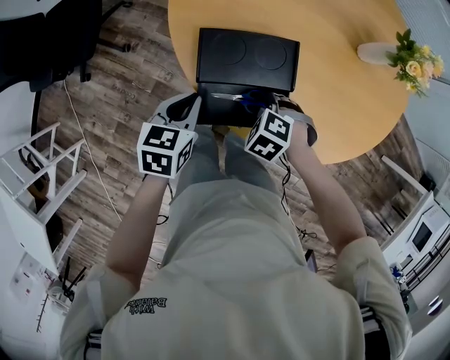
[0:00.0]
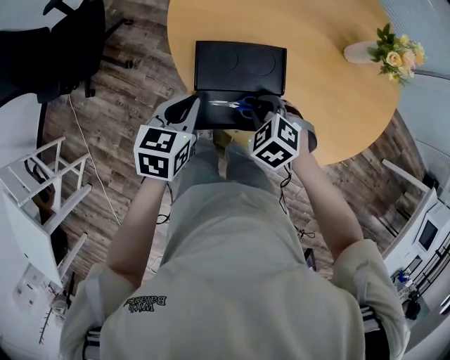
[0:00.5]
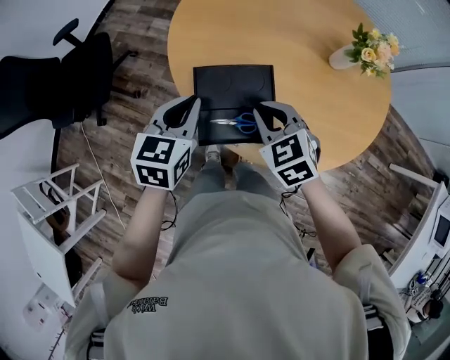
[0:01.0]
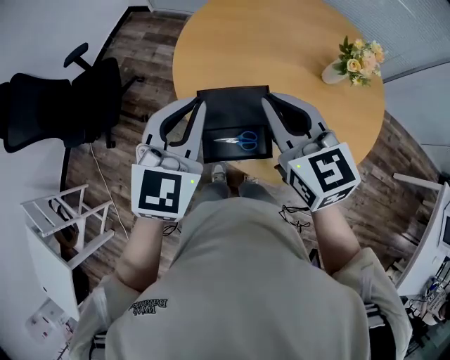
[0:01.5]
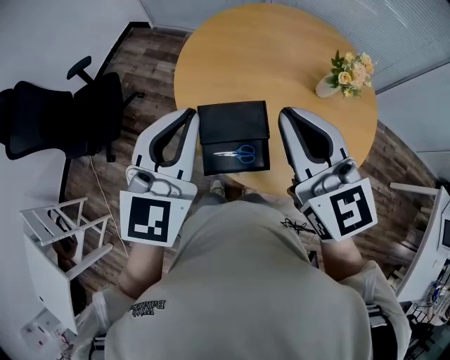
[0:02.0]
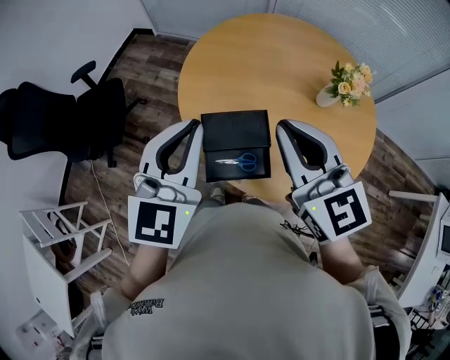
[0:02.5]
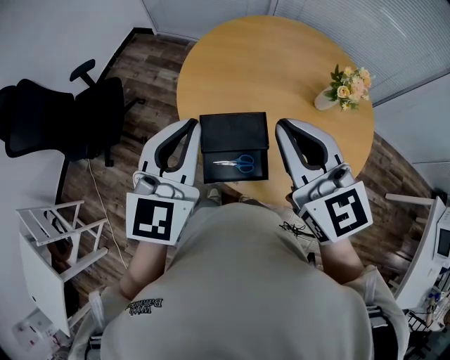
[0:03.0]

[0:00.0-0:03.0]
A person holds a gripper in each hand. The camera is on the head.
0:00.0 to 0:01.5: Both grippers travel together upward, some 30 cm. The right gripper tips its fingers upward by roughly 60 degrees, while the left gripper changes its angle by roughly 40 degrees.
0:01.5 to 0:03.0: The right gripper shifts about 10 cm upward. Meanwhile the left gripper travels upward by some 5 cm.

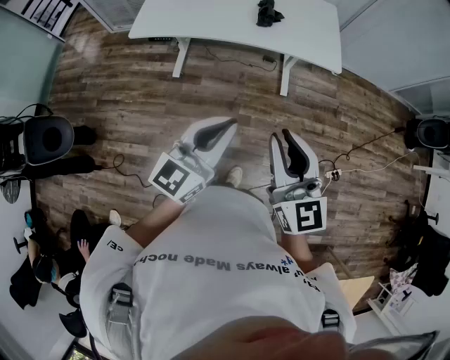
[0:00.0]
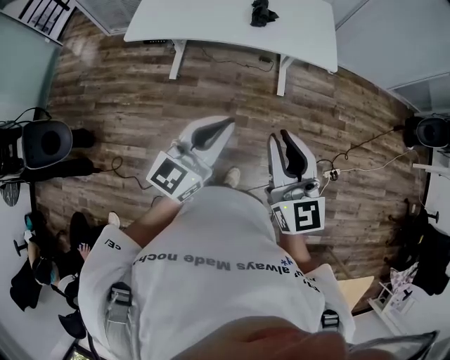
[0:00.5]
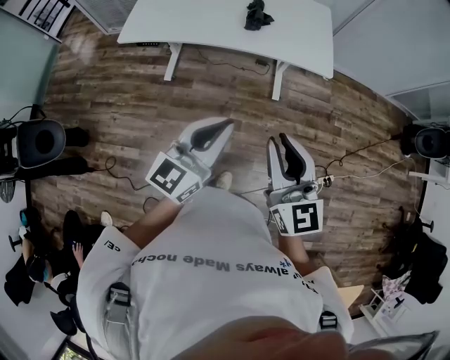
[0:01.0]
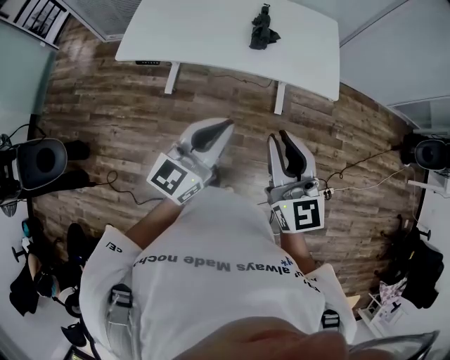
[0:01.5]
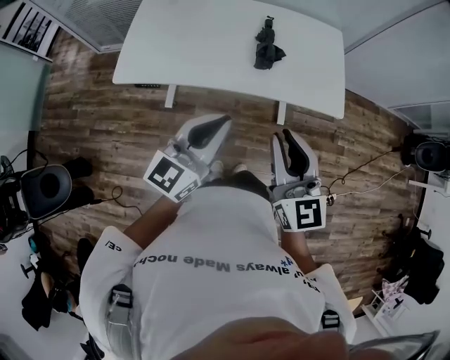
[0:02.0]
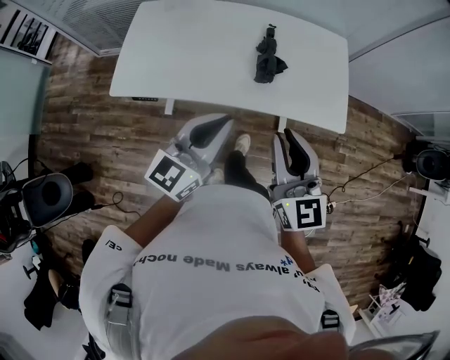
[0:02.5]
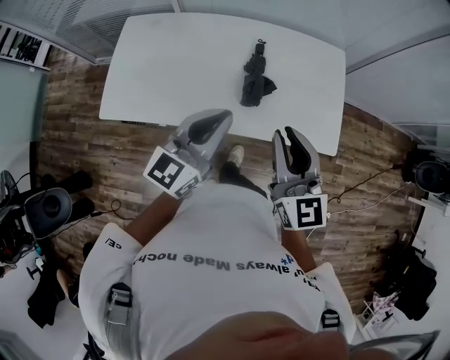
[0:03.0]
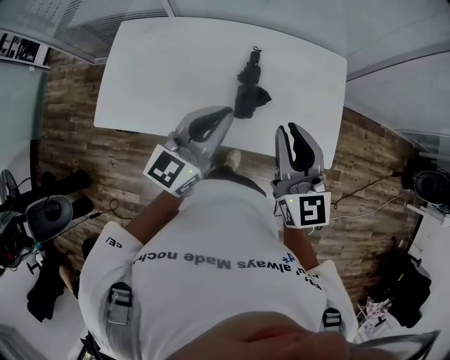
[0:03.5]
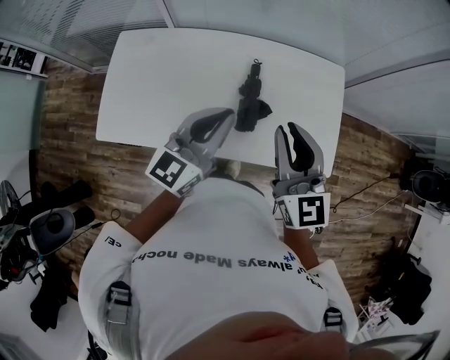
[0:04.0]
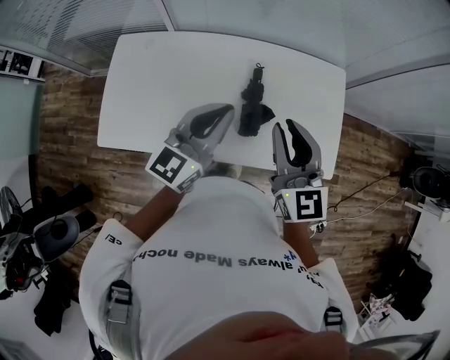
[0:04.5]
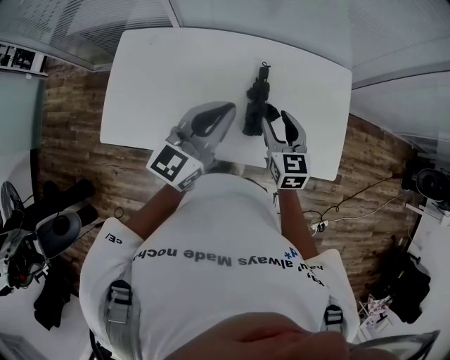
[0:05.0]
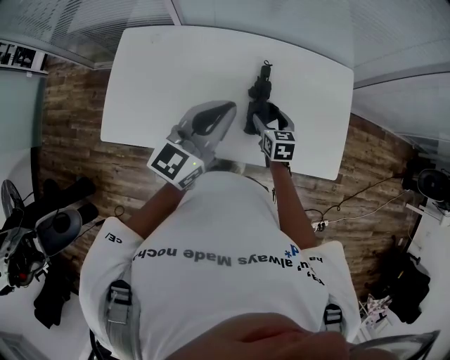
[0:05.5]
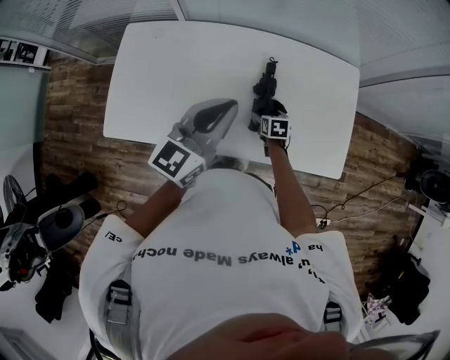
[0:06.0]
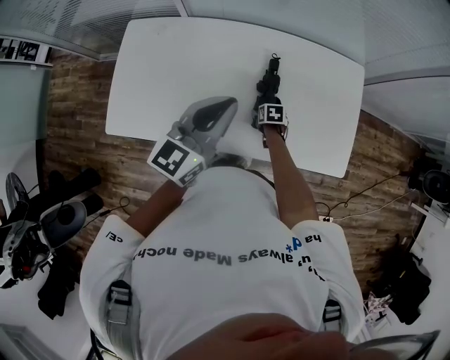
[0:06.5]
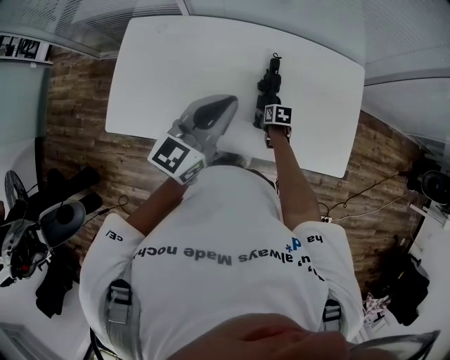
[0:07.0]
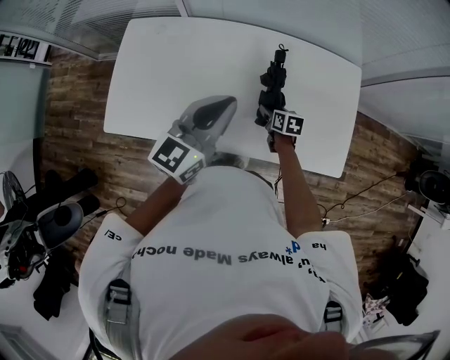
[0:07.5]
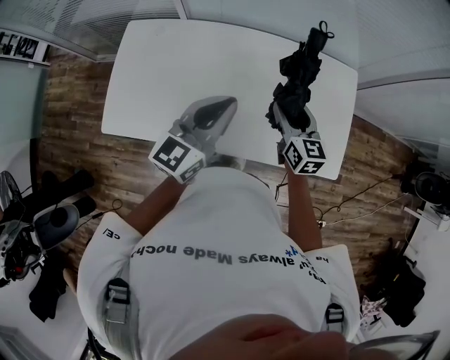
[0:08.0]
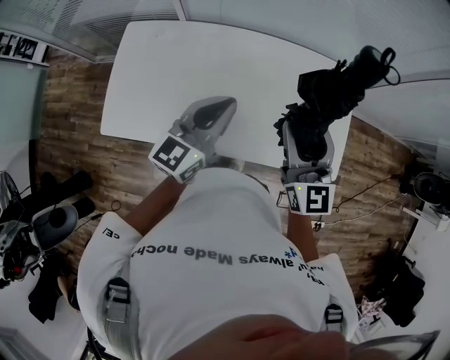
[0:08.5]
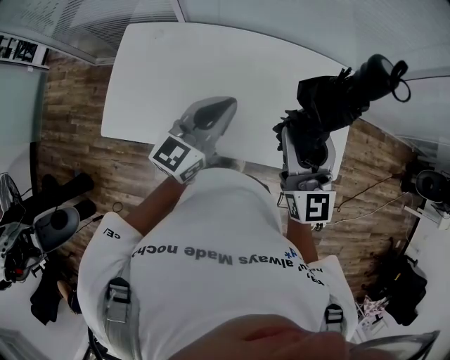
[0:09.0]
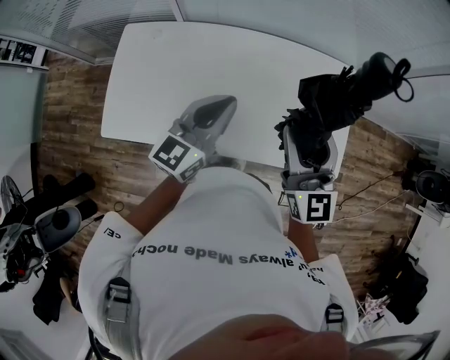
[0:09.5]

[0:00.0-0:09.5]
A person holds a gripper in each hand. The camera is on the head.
0:00.0 to 0:02.0: Both grippers travel together forward, some 35 cm.
0:02.0 to 0:04.0: The two grippers travel together, forward, some 40 cm.
0:04.0 to 0:05.5: The right gripper shifts approximately 30 cm downward, tilts its fingers approximately 40 degrees downward, and opens its fingers. Meanwhile the left gripper shifts about 5 cm to the left.
0:05.5 to 0:07.5: The right gripper is displaced downward by about 10 cm, and turns by about 20 degrees.
0:07.5 to 0:09.5: The right gripper goes roughly 40 cm upward, and tilts its fingers roughly 50 degrees upward.

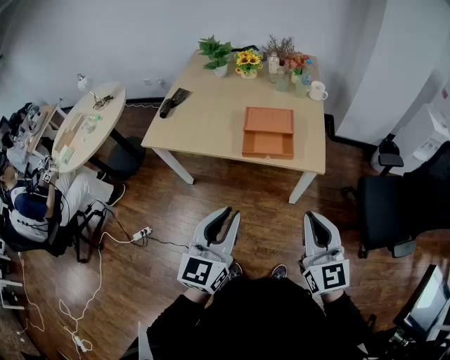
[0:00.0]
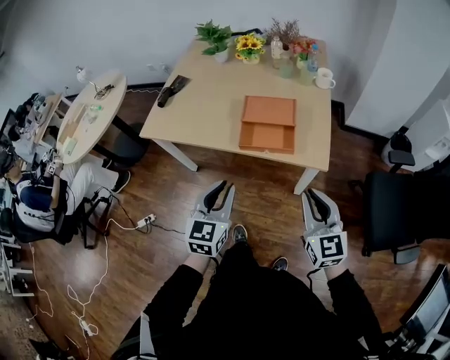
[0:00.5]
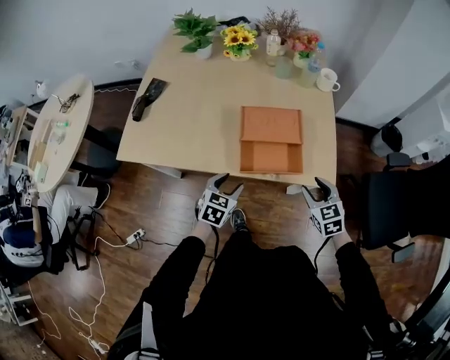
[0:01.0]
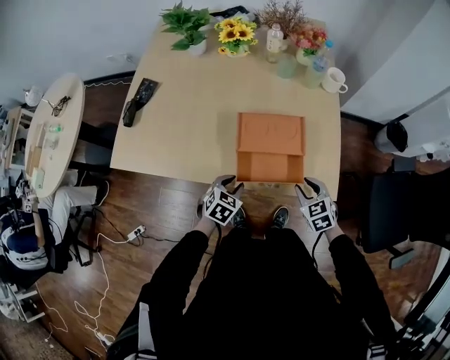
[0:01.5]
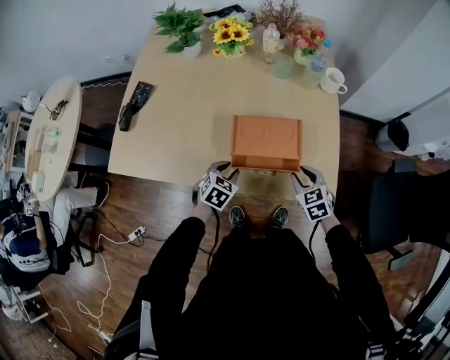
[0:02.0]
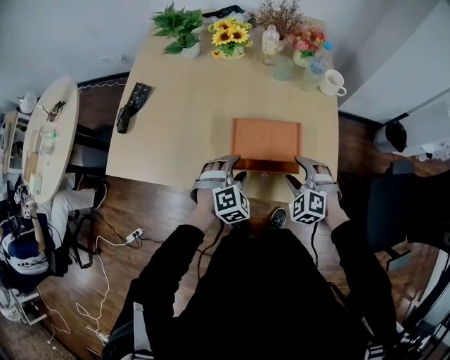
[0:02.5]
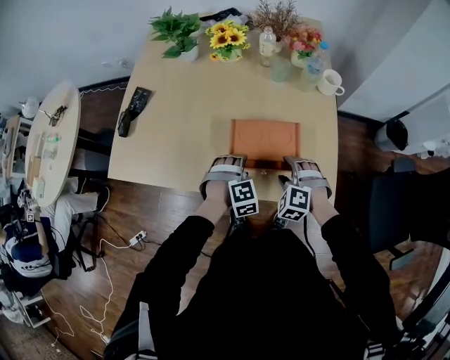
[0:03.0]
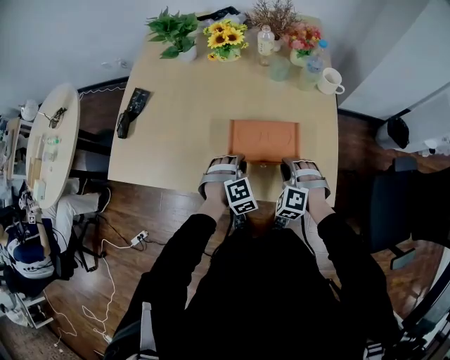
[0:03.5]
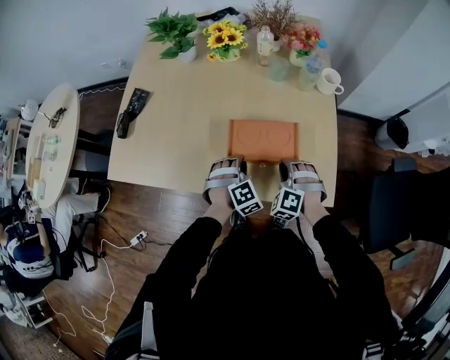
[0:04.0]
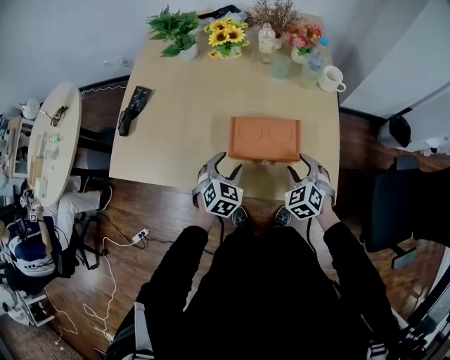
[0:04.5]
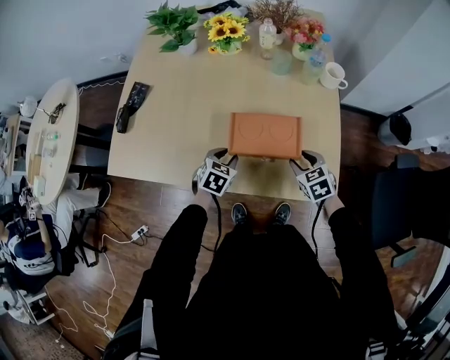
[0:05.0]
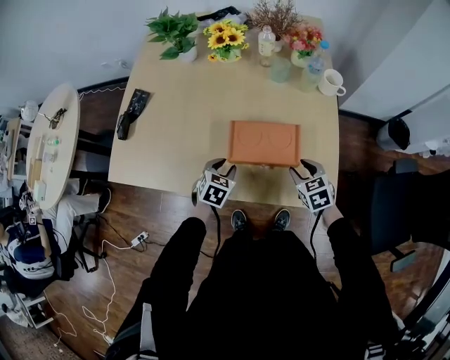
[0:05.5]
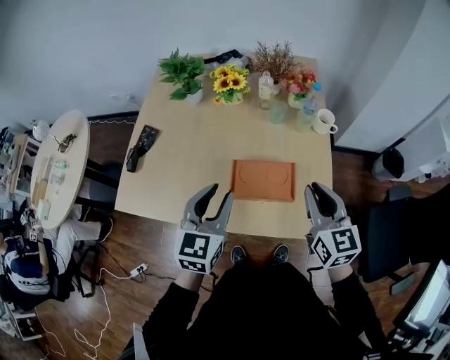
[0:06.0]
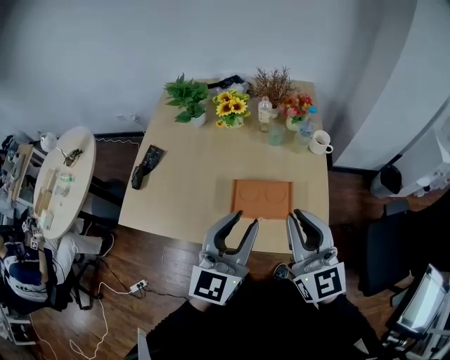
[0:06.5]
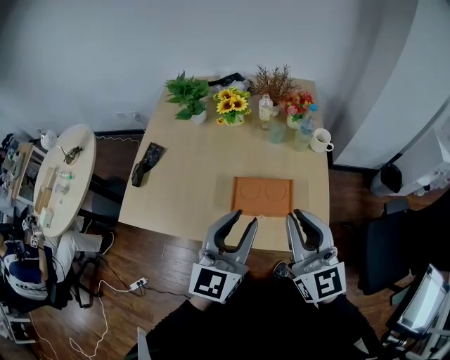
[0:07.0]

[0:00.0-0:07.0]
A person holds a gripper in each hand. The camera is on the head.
0:00.0 to 0:02.0: The two grippers go approximately 50 cm forward and downward. The right gripper tilts its fingers roughly 40 degrees downward, and opens its fingers; the left gripper tilts its fingers approximately 50 degrees downward, and opens, then closes once more.
0:02.0 to 0:03.5: The right gripper ends up about 5 cm from where it was, rolls counterclockwise, seen from behind, by roughly 50 degrees, and opens, then closes once more. Meanwhile the left gripper changes place by approximately 5 cm, rolls clockwise, seen from behind, by approximately 50 degrees, and opens, then closes again.
0:03.5 to 0:05.0: The left gripper shifts by about 5 cm, rolls counterclockwise, seen from behind, by roughly 50 degrees, and opens, then closes again. The right gripper changes place by roughly 5 cm, and rolls clockwise, seen from behind, by approximately 50 degrees.
0:05.0 to 0:07.0: The grippers both shift upward by approximately 35 cm. The right gripper angles its fingers upward, by some 50 degrees, and closes up. Meanwhile the left gripper points its fingers about 50 degrees further upward.

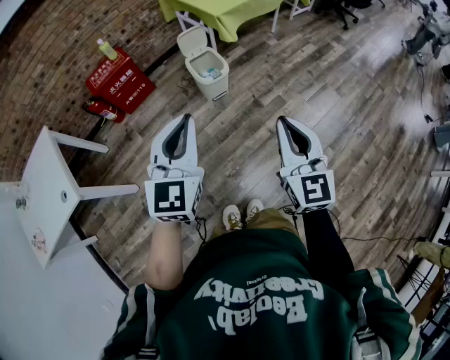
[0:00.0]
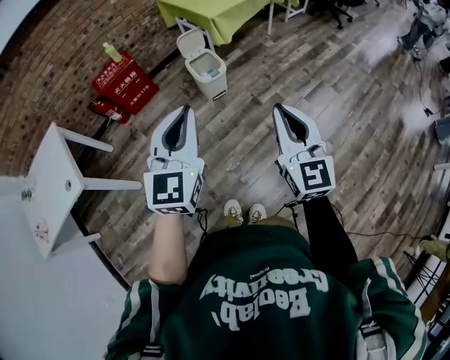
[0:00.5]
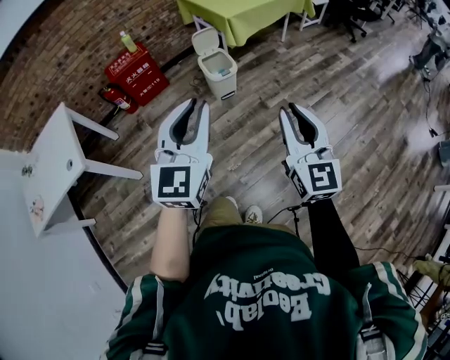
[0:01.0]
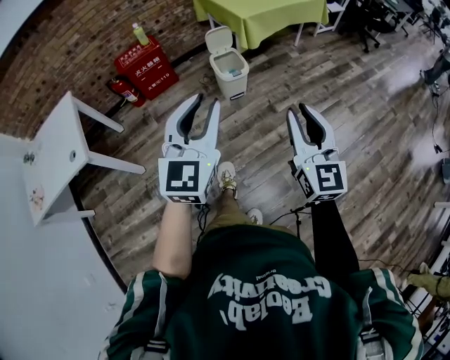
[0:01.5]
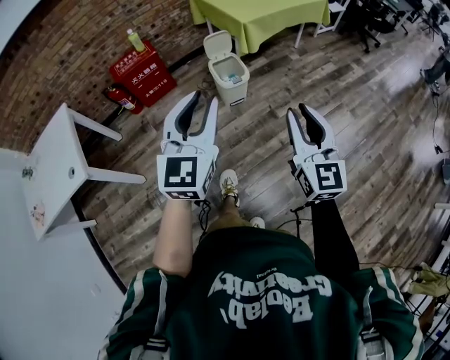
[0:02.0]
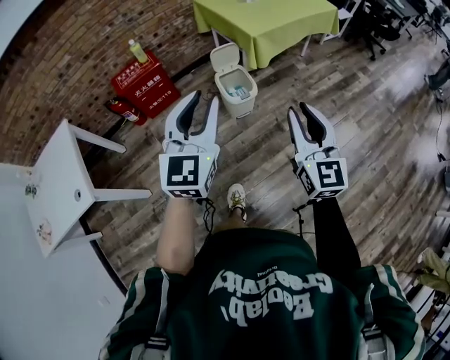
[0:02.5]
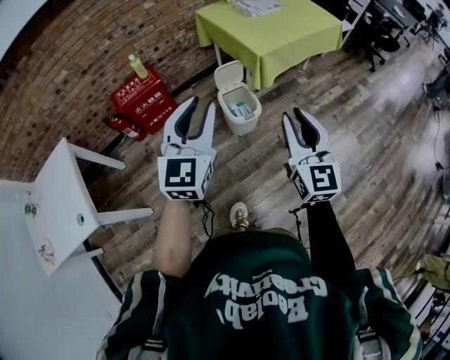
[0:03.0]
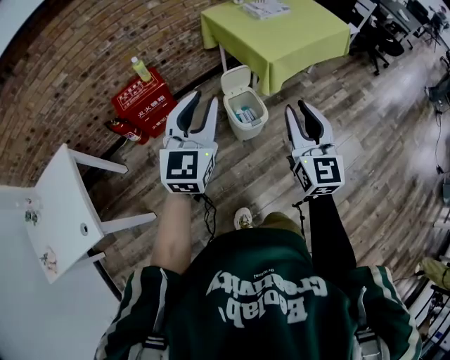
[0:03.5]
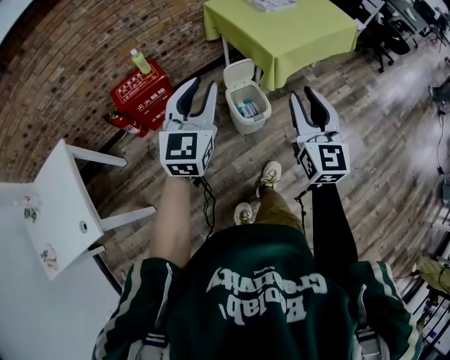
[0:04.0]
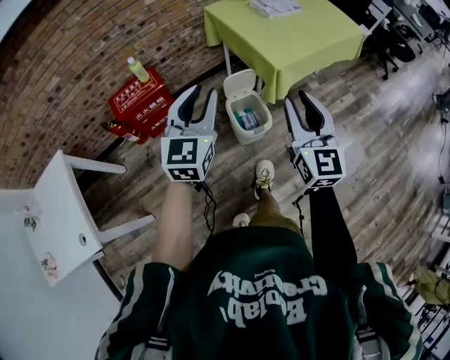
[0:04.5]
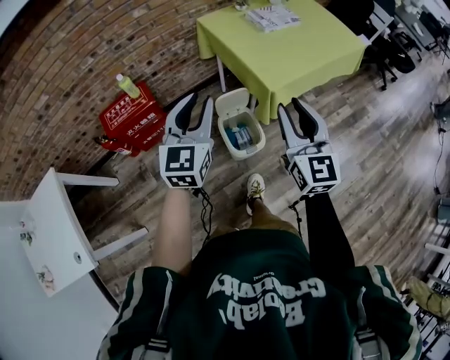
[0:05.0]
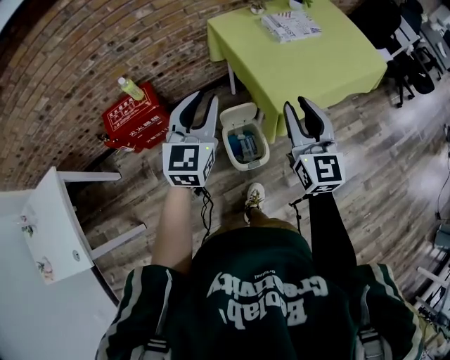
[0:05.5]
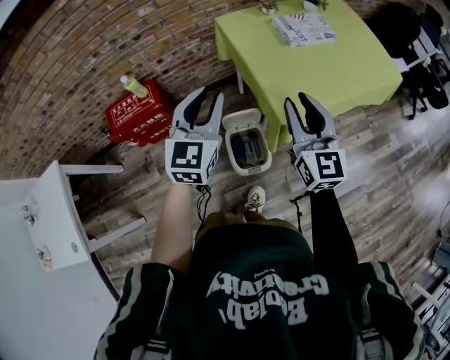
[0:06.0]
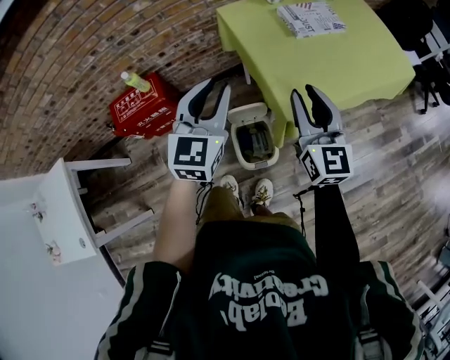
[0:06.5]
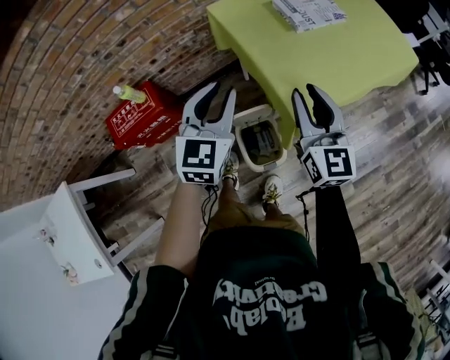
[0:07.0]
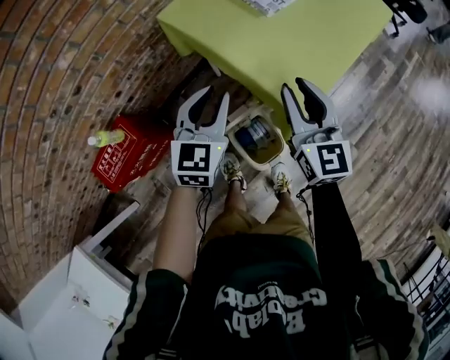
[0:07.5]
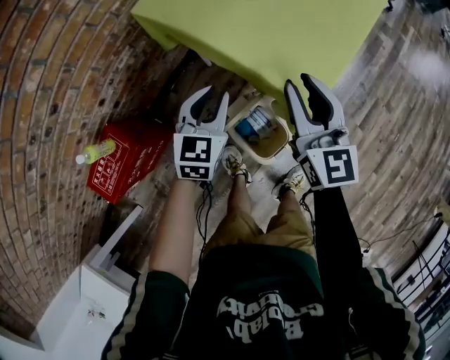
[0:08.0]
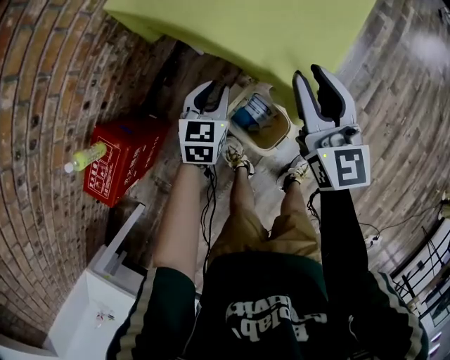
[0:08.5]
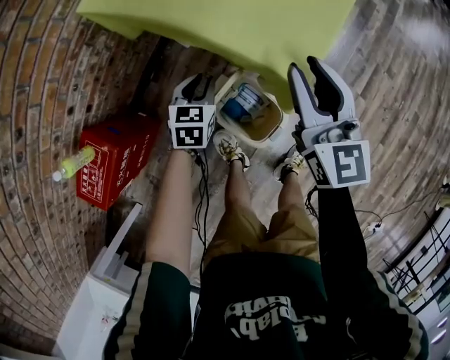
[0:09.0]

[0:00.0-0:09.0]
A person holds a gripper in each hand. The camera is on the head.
0:00.0 to 0:02.0: The right gripper moves approximately 10 cm backward and comes back, and opens up. Meanwhile the left gripper reaches some 15 cm backward, then returns, and opens up.
0:02.0 to 0:04.5: Both grippers are carried forward, about 40 cm.
0:04.5 to 0:07.0: The two grippers go approximately 35 cm forward.
0:07.0 to 0:09.0: The left gripper moves downward, roughly 40 cm, and swivels roughly 40 degrees. The right gripper moves downward, roughly 15 cm, and rotates approximately 30 degrees.
